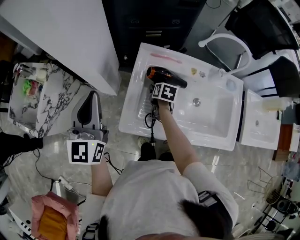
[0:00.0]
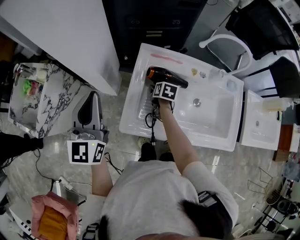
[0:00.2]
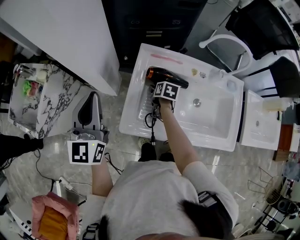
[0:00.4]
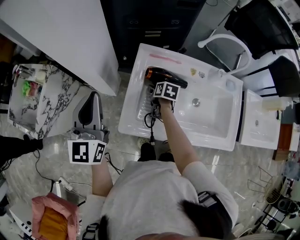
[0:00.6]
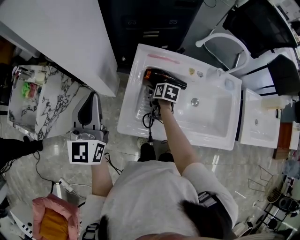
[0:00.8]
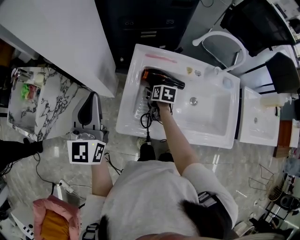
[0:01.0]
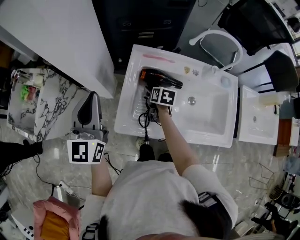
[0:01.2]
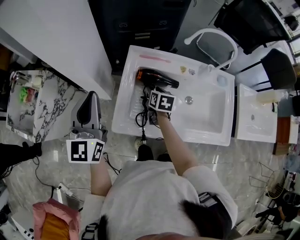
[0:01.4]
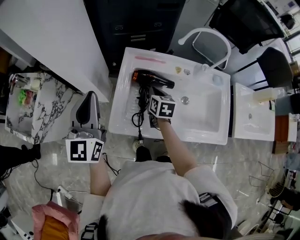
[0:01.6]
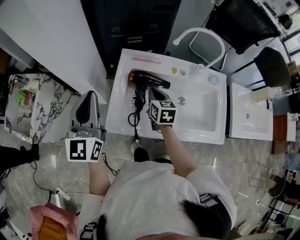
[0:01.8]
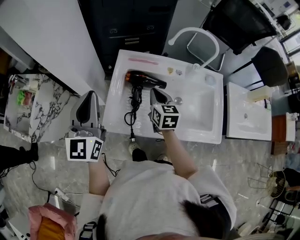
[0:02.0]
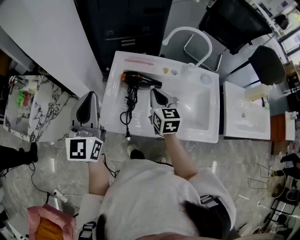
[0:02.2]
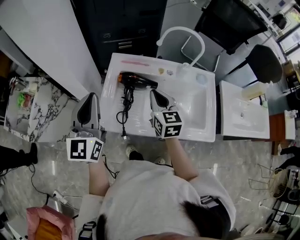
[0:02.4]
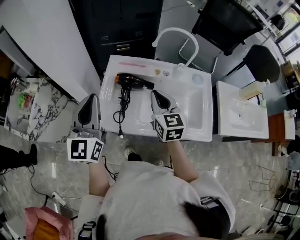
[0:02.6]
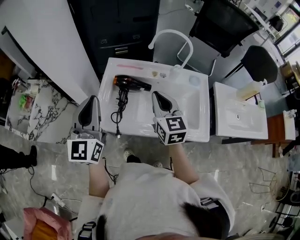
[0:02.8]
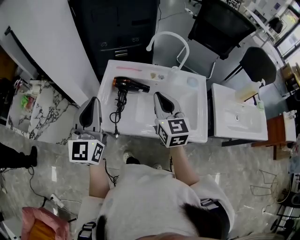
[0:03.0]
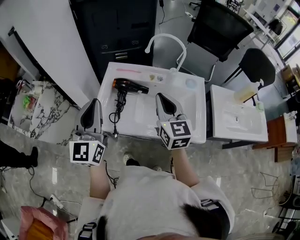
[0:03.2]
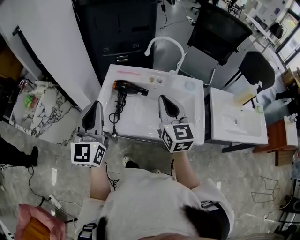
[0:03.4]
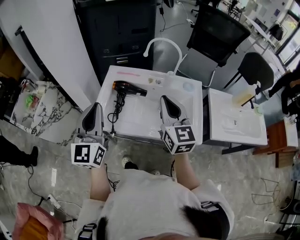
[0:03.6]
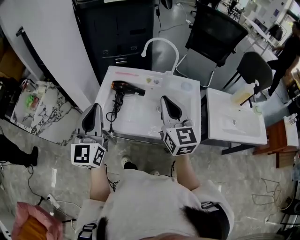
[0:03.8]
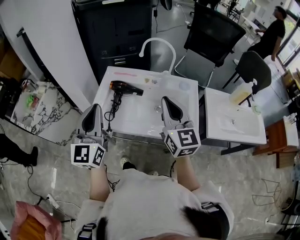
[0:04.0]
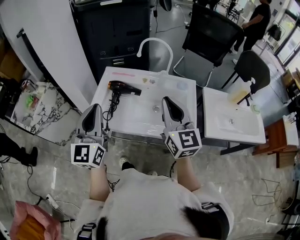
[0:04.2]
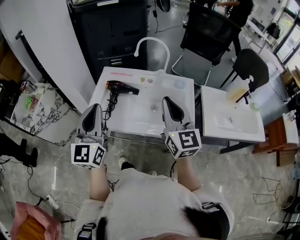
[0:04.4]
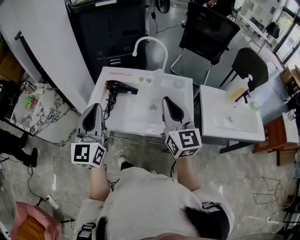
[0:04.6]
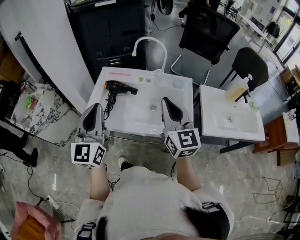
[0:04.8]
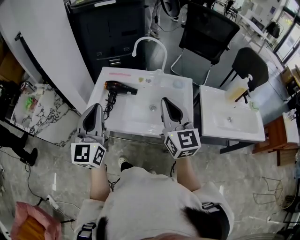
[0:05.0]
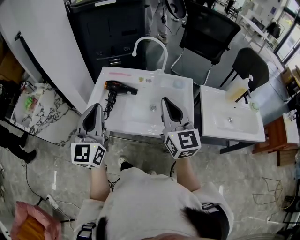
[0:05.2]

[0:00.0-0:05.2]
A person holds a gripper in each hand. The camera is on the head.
0:00.0 to 0:01.8: The left gripper moves to the right, some 5 cm, while the right gripper is displaced upward by approximately 10 cm, changes its angle by roughly 30 degrees, and closes.
0:01.8 to 0:03.4: The right gripper moves upward, backward and to the right, roughly 30 cm, and turns by some 30 degrees, while the left gripper is displaced to the right, backward and upward by roughly 20 cm.
0:03.4 to 0:05.2: The two grippers go approximately 10 cm to the right and backward.

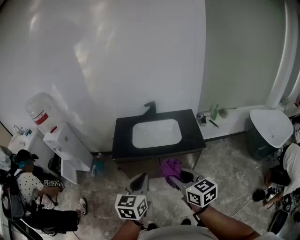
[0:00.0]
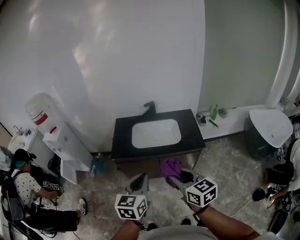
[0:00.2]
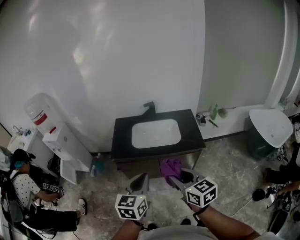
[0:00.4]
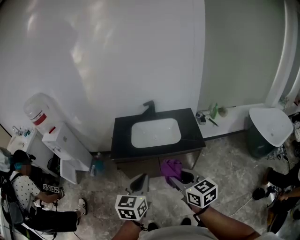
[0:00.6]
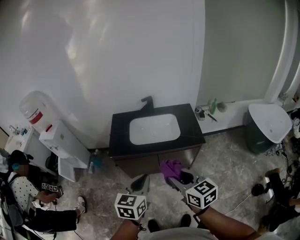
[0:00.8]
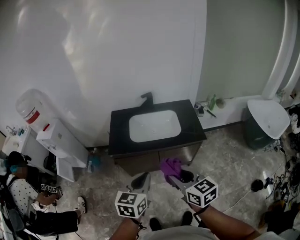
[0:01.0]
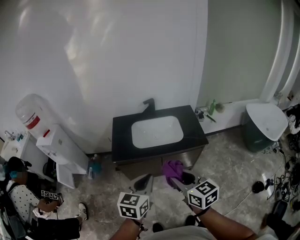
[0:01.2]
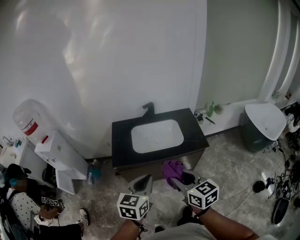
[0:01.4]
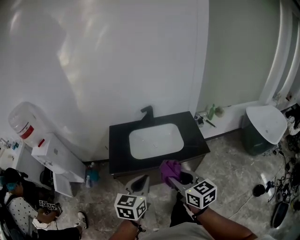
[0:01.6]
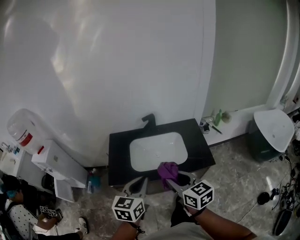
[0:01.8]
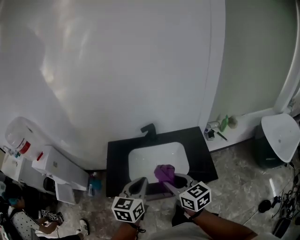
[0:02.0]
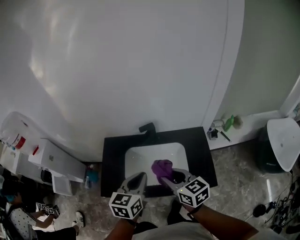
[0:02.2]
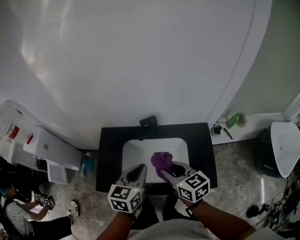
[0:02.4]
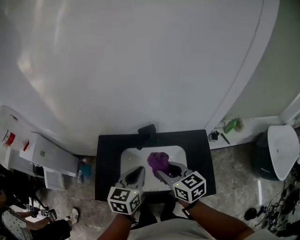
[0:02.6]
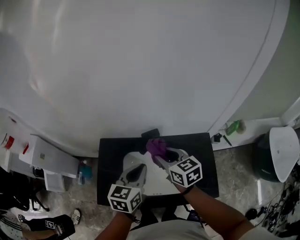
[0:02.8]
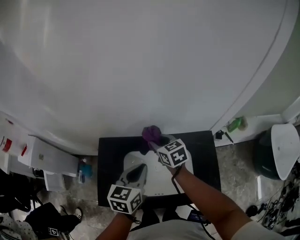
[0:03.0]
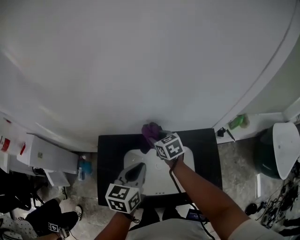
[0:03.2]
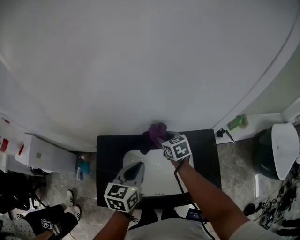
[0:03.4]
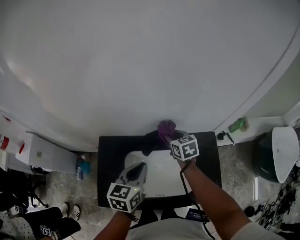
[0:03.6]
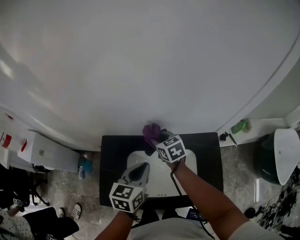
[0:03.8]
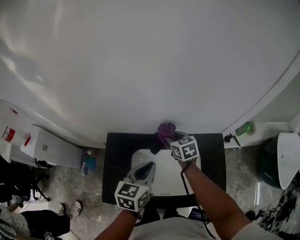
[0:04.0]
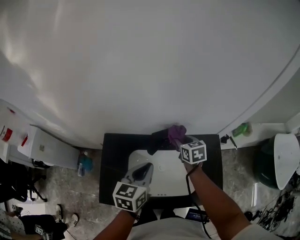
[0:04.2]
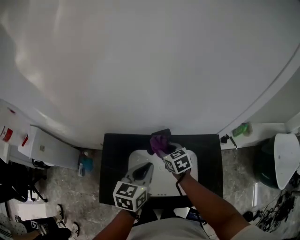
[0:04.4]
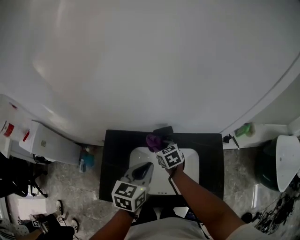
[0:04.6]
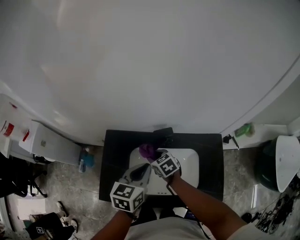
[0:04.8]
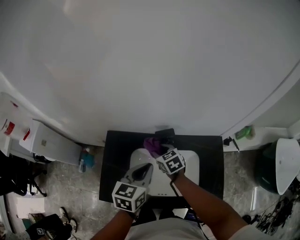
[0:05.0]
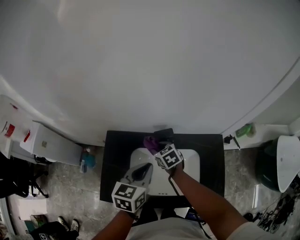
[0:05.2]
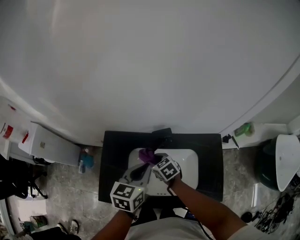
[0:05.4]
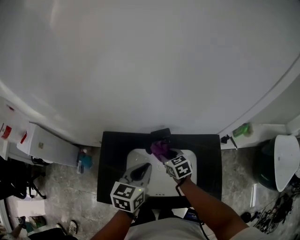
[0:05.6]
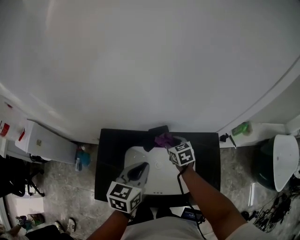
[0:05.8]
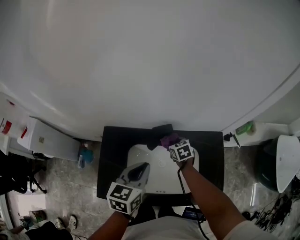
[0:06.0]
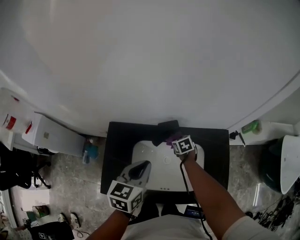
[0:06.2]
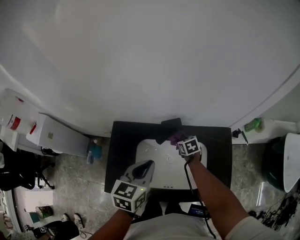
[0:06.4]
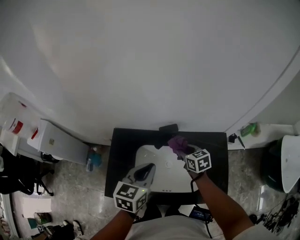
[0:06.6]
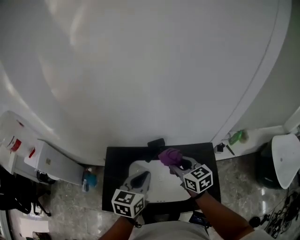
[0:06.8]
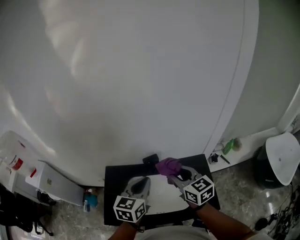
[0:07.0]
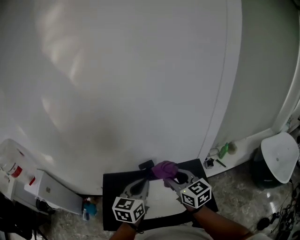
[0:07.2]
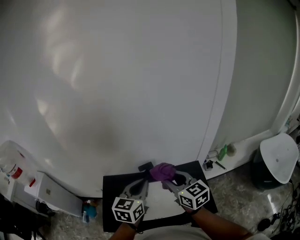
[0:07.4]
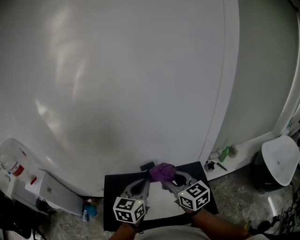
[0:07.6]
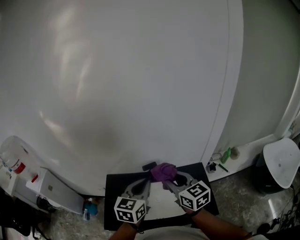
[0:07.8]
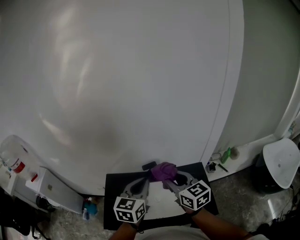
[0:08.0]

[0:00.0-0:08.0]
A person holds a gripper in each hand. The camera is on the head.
0:00.0 to 0:01.6: The right gripper shifts approximately 15 cm forward and to the left; the left gripper moves forward, approximately 15 cm.
0:01.6 to 0:03.2: Both grippers are carried forward, about 60 cm. The right gripper turns by about 20 degrees.
0:03.2 to 0:04.8: The right gripper swings left and right, approximately 15 cm each way, with 3 reversals.
0:04.8 to 0:06.4: The right gripper heads to the right and downward, covering roughly 15 cm.
0:06.4 to 0:08.0: The left gripper goes roughly 15 cm upward. Meanwhile the right gripper moves upward and backward, about 50 cm, and tilts its fingers some 40 degrees upward.

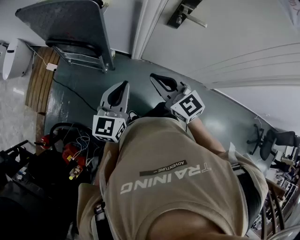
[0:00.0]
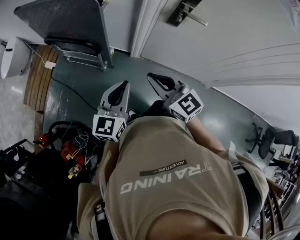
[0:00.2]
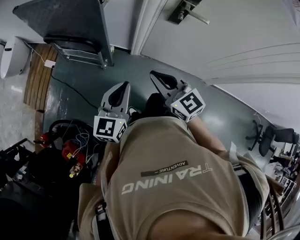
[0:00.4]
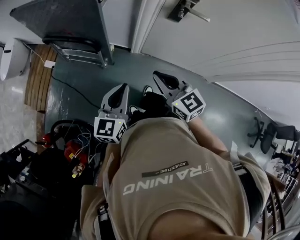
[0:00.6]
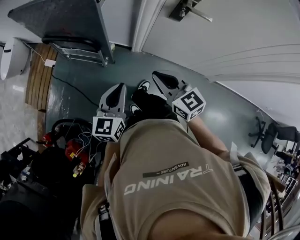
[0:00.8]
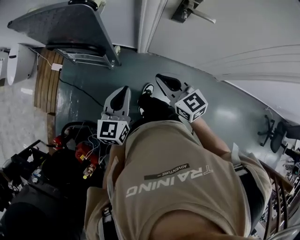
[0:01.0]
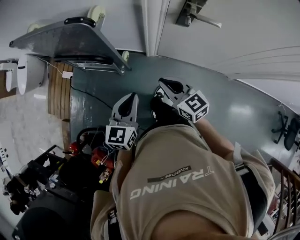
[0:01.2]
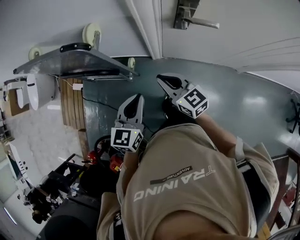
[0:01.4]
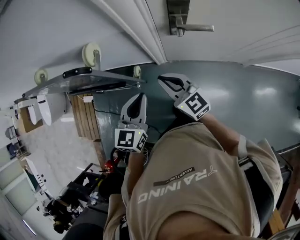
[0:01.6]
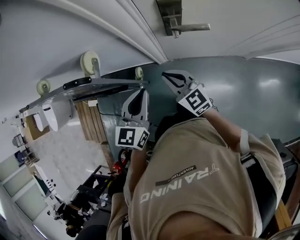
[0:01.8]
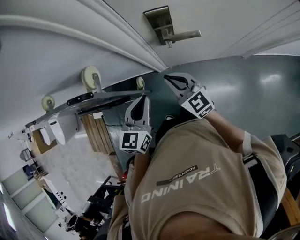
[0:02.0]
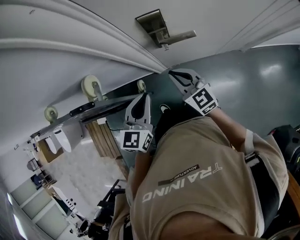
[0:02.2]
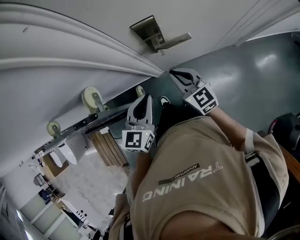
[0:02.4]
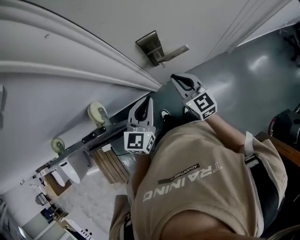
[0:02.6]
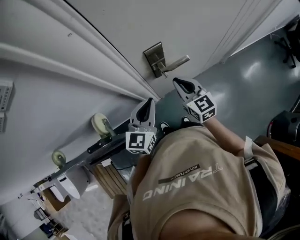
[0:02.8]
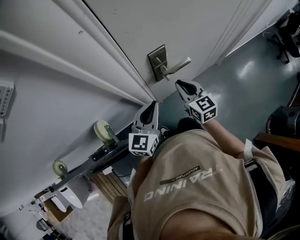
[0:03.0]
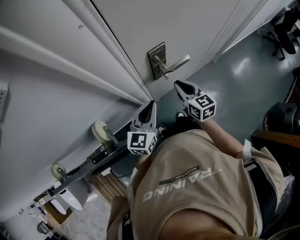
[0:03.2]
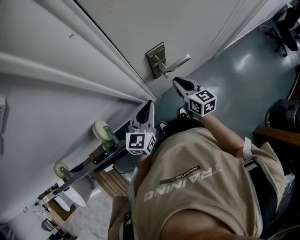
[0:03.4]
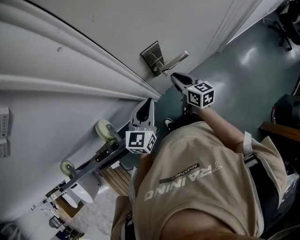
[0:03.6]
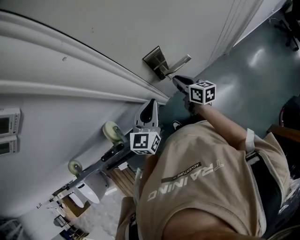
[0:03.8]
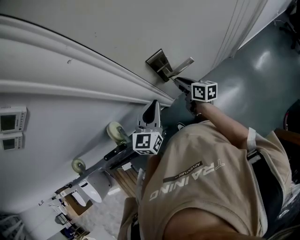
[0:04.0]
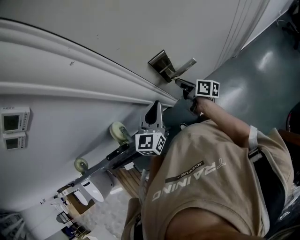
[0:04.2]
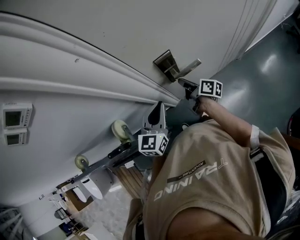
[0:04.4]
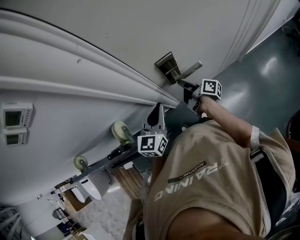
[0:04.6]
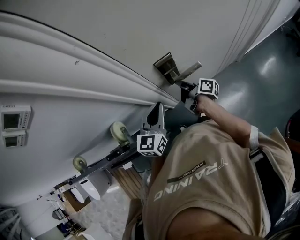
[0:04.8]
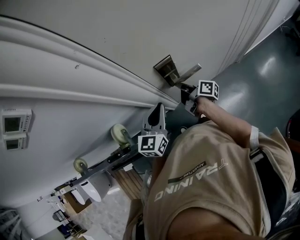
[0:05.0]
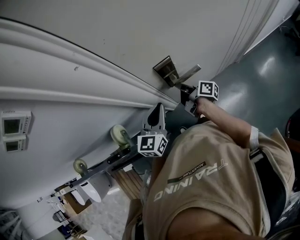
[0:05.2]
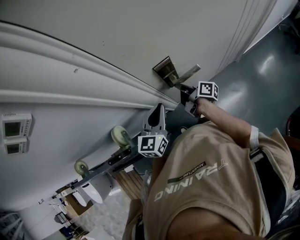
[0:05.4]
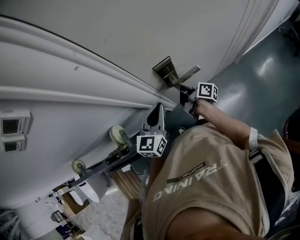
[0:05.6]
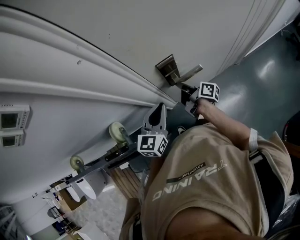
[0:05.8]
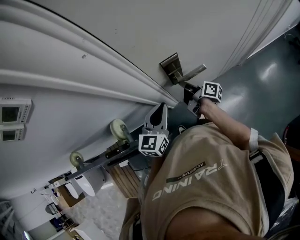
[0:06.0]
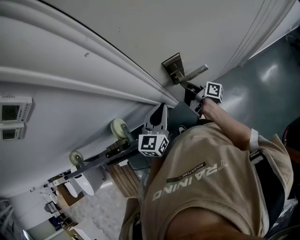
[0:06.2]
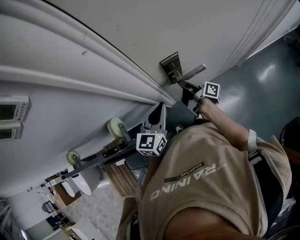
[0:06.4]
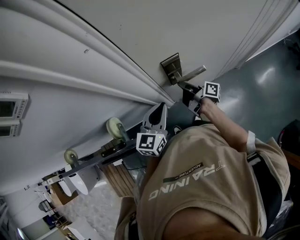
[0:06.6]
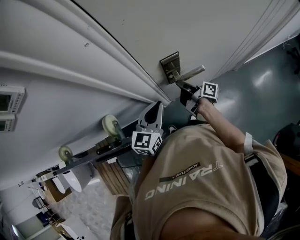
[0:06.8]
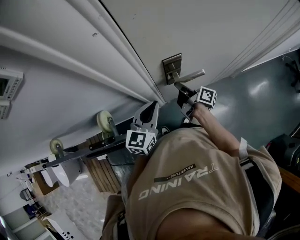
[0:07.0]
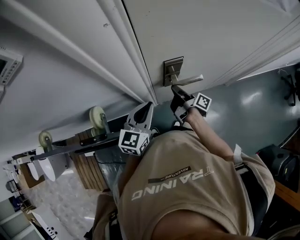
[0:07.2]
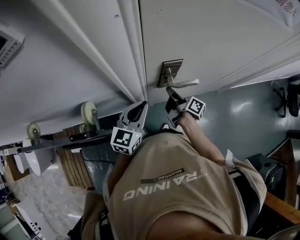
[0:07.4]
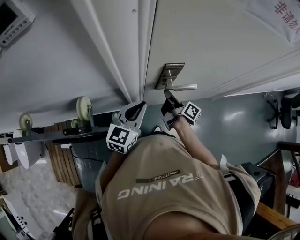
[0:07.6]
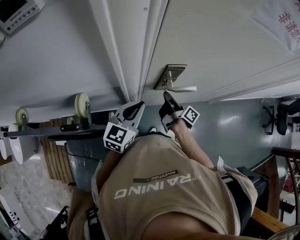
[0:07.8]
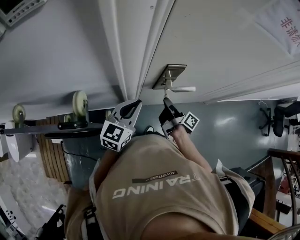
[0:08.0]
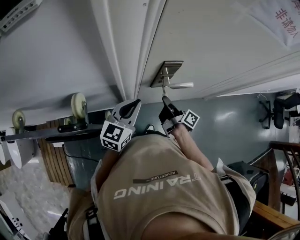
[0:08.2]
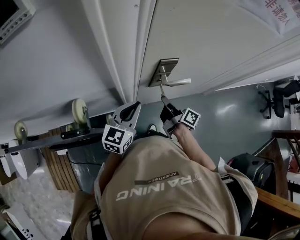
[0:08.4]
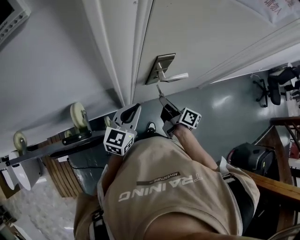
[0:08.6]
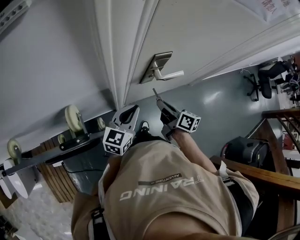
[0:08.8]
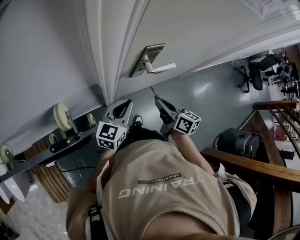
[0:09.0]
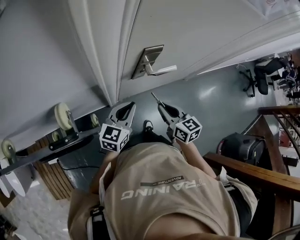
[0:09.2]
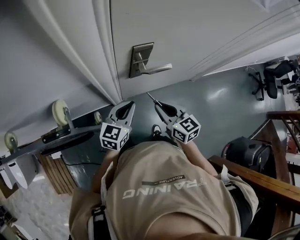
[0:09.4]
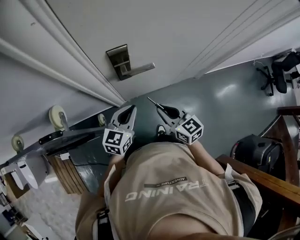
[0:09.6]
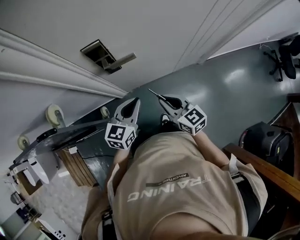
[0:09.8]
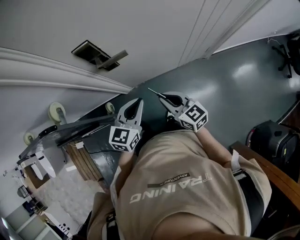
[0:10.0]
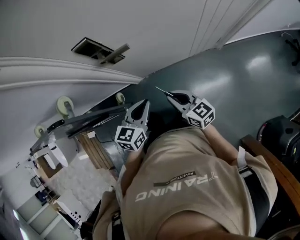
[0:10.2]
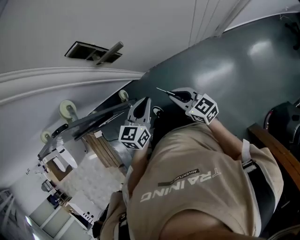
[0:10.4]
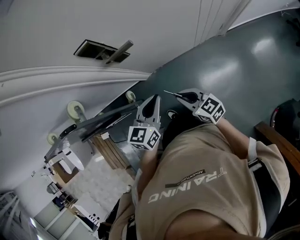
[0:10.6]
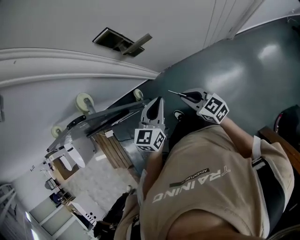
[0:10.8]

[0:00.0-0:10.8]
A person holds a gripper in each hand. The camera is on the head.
0:00.0 to 0:01.6: Both grippers move forward, some 20 cm.
0:01.6 to 0:03.0: The left gripper ends up approximately 15 cm from where it was, and rotates approximately 40 degrees. The right gripper ends up approximately 15 cm from where it was, and rotates approximately 50 degrees.
0:03.0 to 0:04.6: The right gripper is displaced downward and forward by roughly 10 cm, and rotates around the line of its fingers by some 80 degrees, clockwise from behind.
0:04.6 to 0:07.8: There are only small adjustments of the grippers.
0:07.8 to 0:09.2: The right gripper shifts approximately 15 cm backward, and rolls counterclockwise, seen from behind, by some 60 degrees. The left gripper shifts roughly 5 cm downward.
0:09.2 to 0:10.8: The right gripper is displaced backward, to the right and downward by approximately 15 cm, and rotates approximately 30 degrees; the left gripper heads to the right and backward, covering some 20 cm.
